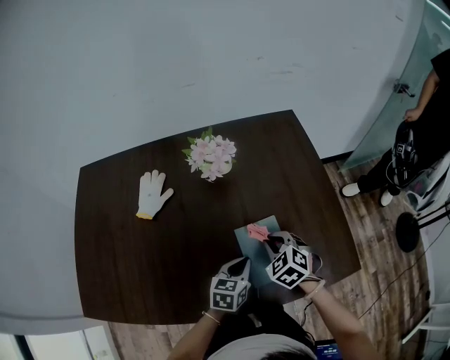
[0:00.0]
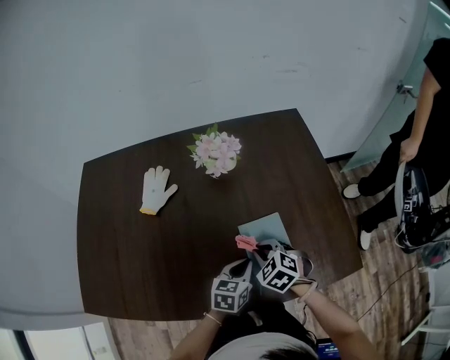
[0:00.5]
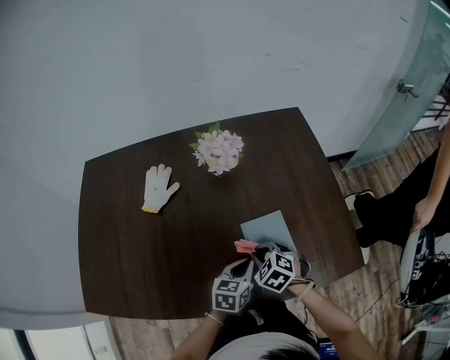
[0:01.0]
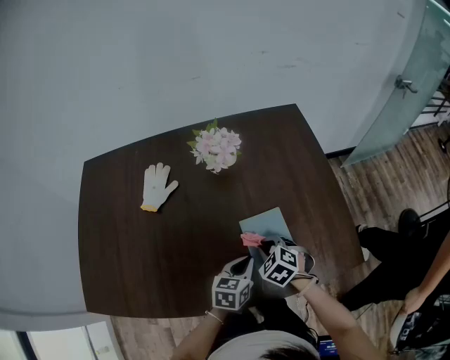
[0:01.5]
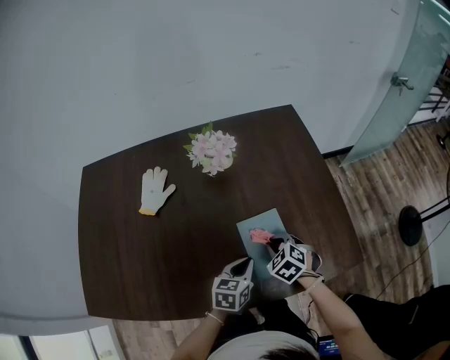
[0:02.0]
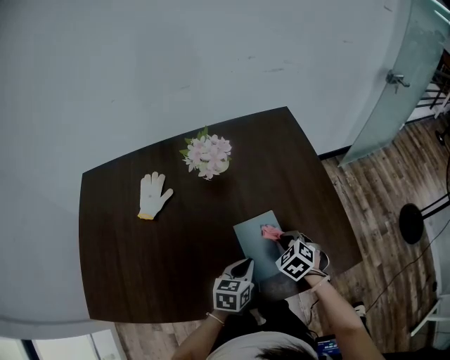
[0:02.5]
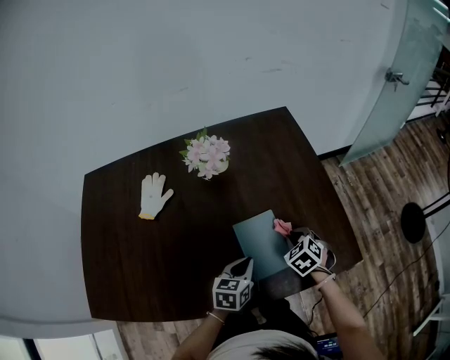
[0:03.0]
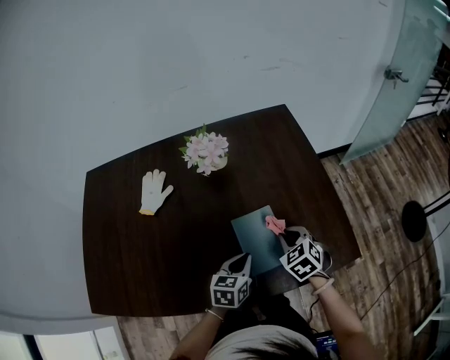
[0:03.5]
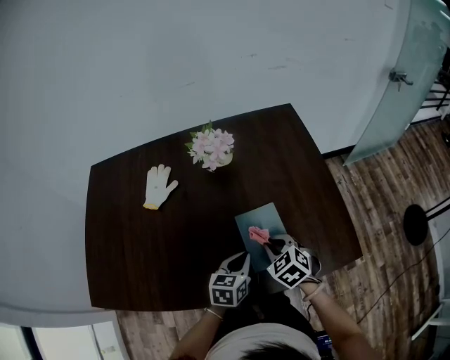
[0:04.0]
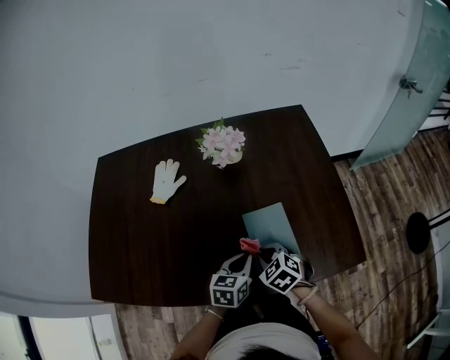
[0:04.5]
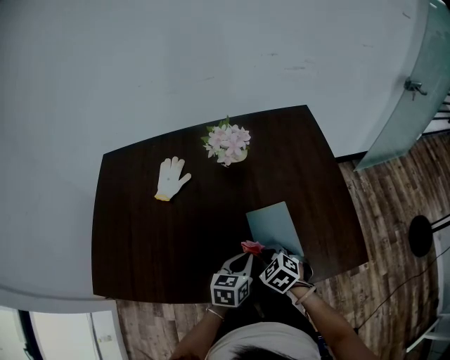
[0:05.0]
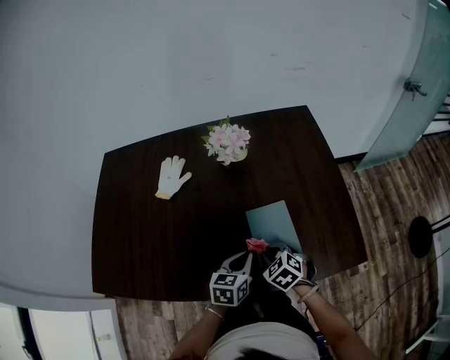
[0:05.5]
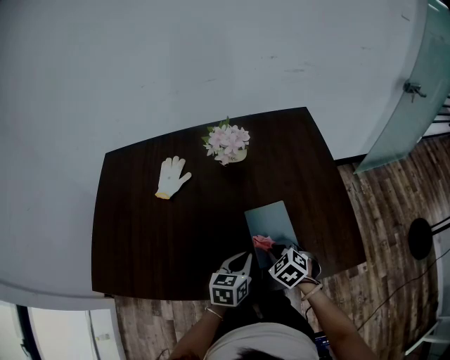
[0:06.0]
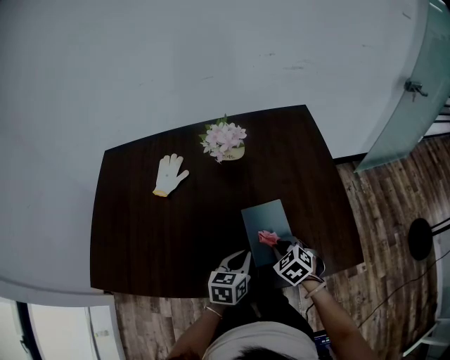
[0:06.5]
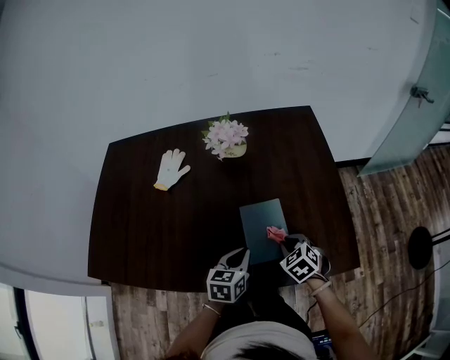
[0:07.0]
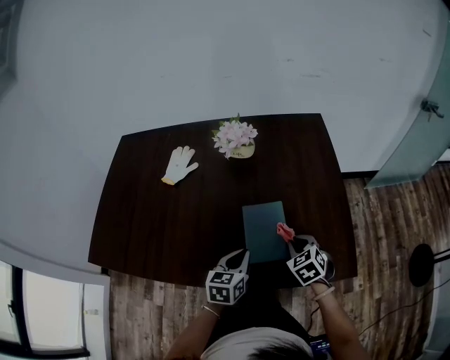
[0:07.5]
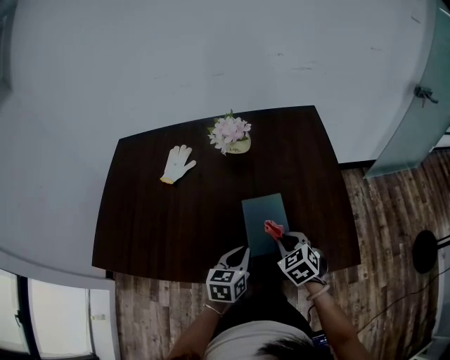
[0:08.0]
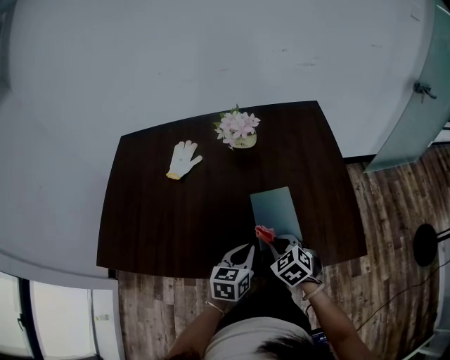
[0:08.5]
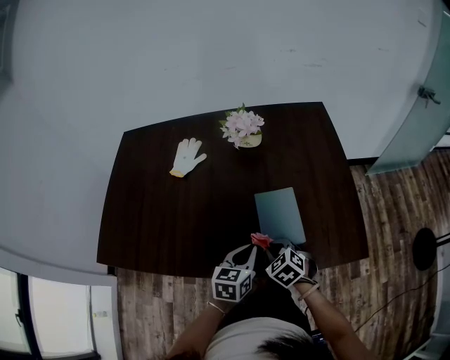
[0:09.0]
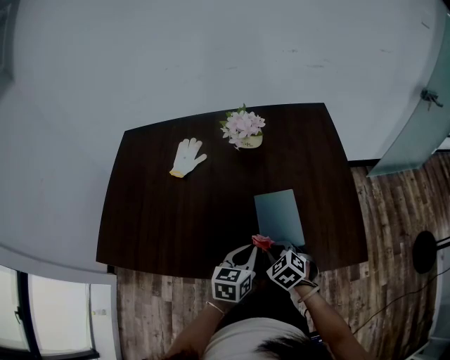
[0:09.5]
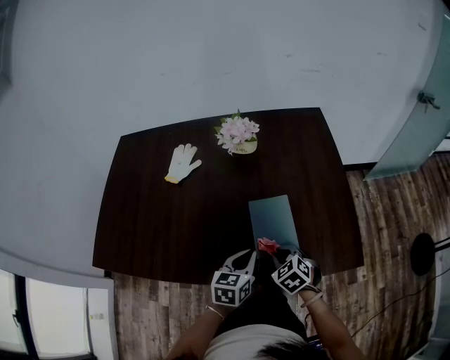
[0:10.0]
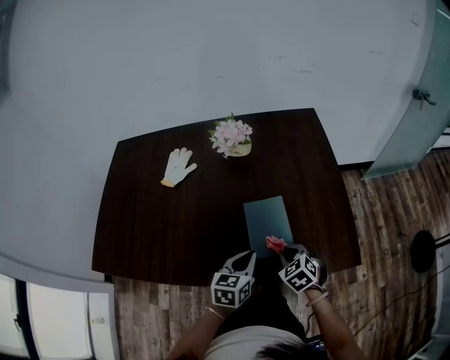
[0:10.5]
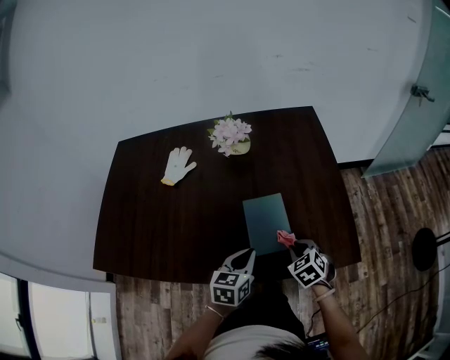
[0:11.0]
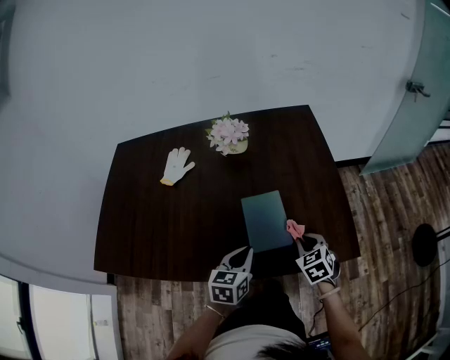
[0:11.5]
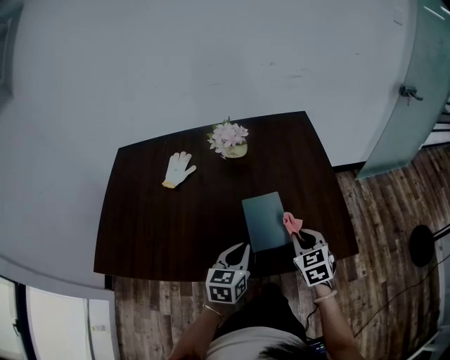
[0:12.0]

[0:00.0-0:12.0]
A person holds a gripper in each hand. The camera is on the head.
0:02.0 to 0:04.0: The right gripper goes to the right and returns, some 10 cm each way.
0:04.0 to 0:06.0: The right gripper changes place by roughly 5 cm.
0:06.0 to 0:08.0: The right gripper heads to the right, covering approximately 5 cm. Meanwhile the left gripper ends up about 5 cm from where it was.
0:08.0 to 0:10.0: The right gripper travels to the left by approximately 5 cm.
0:10.0 to 0:12.0: The right gripper heads to the right and upward, covering roughly 15 cm, and turns by roughly 30 degrees. The left gripper moves approximately 5 cm.

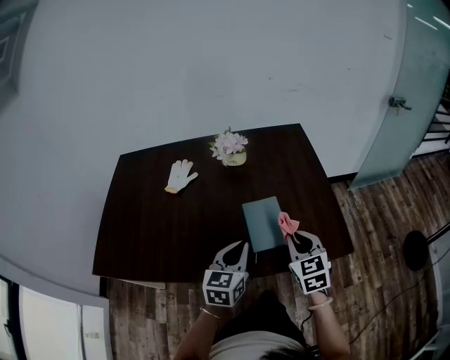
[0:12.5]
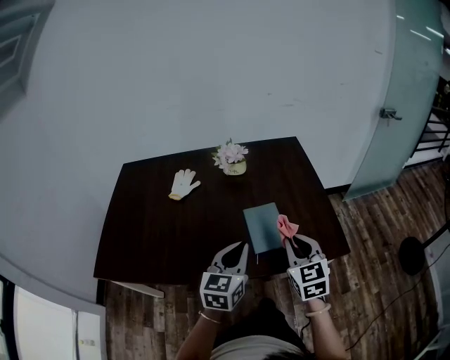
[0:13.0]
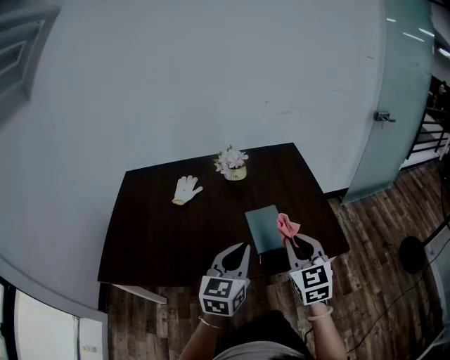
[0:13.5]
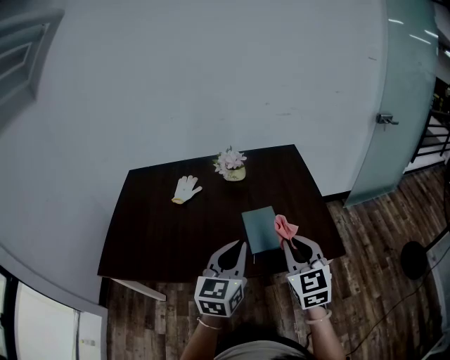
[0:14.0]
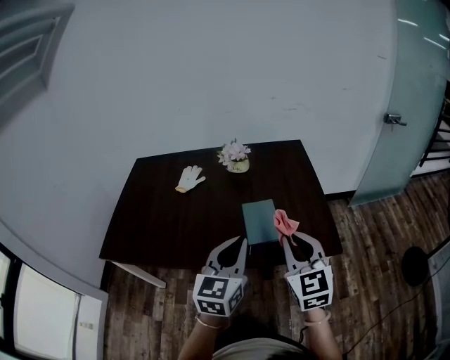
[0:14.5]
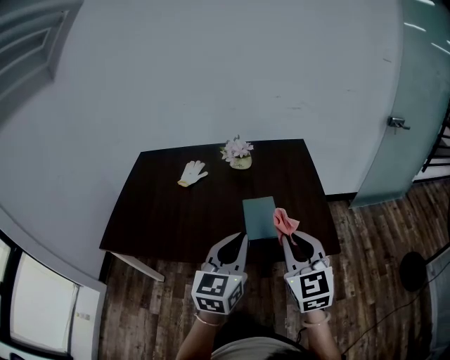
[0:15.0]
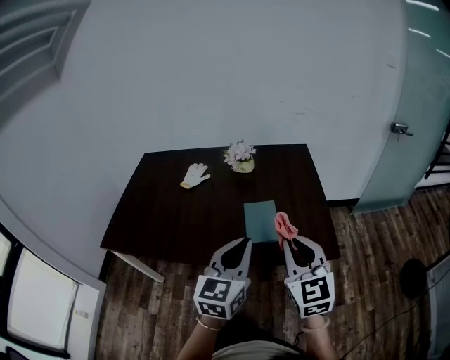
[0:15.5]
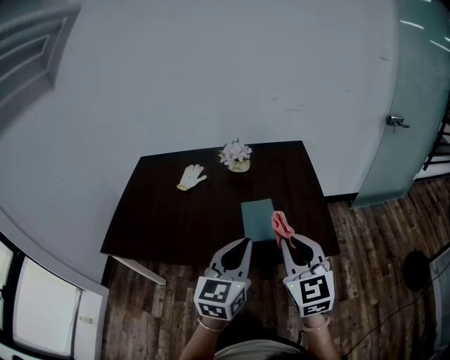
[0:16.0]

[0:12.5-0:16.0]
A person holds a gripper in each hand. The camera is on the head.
0:12.5 to 0:14.5: Both grippers move upward and backward, about 20 cm.
0:14.5 to 0:16.0: The grippers stay close to where they were, moving slightly.

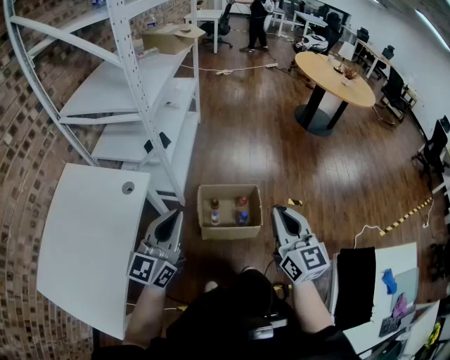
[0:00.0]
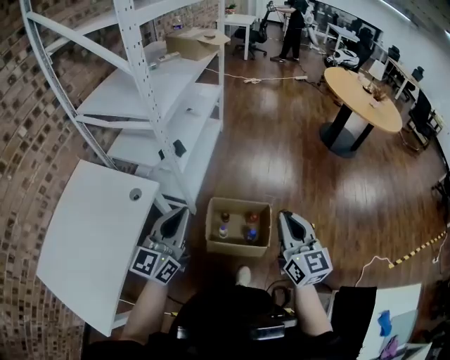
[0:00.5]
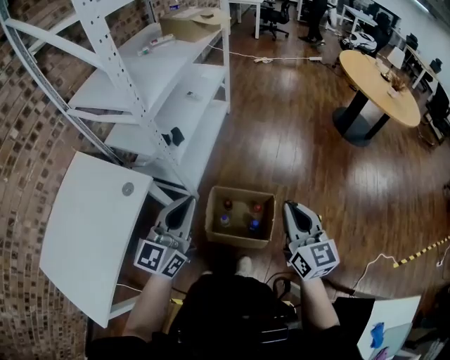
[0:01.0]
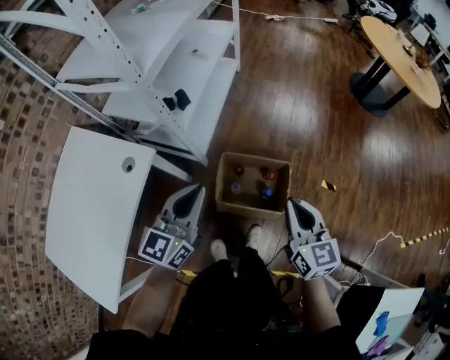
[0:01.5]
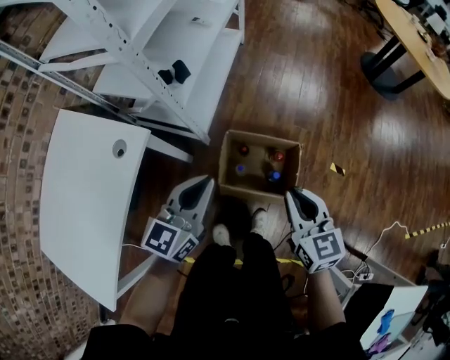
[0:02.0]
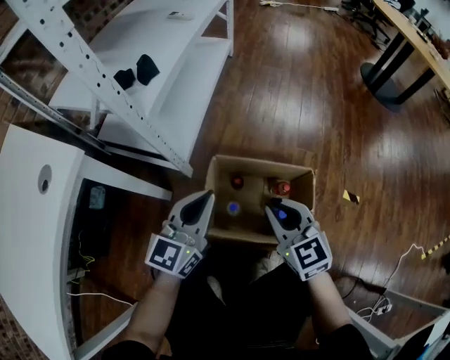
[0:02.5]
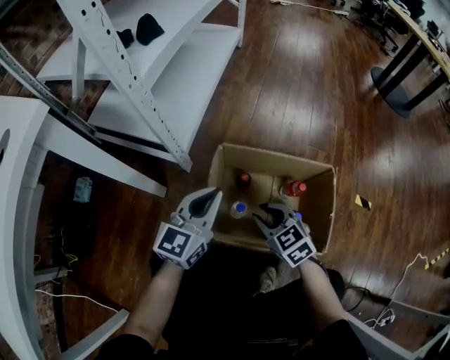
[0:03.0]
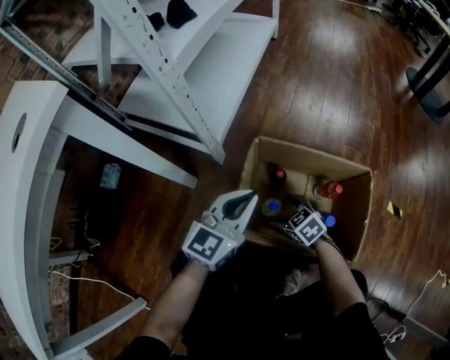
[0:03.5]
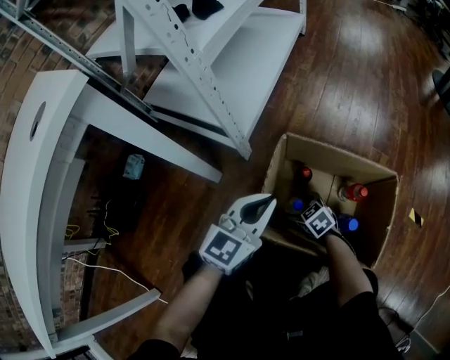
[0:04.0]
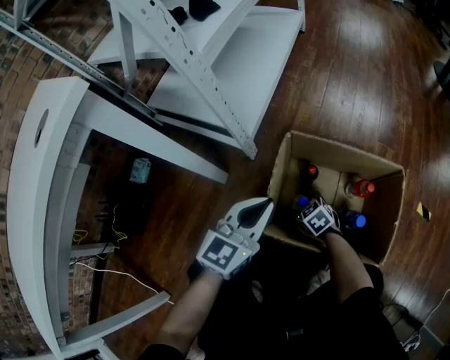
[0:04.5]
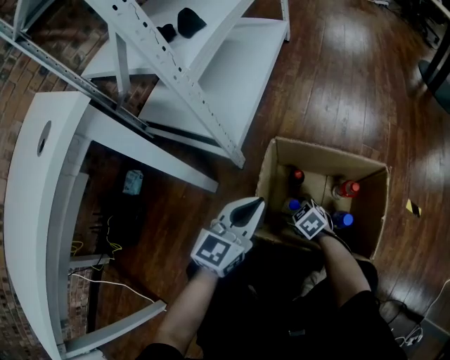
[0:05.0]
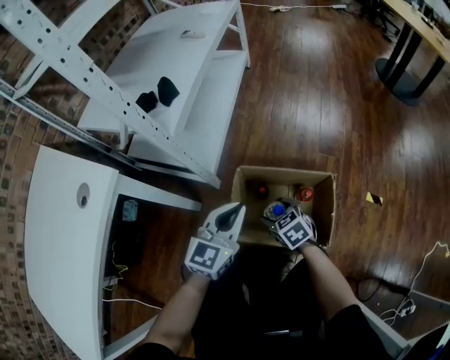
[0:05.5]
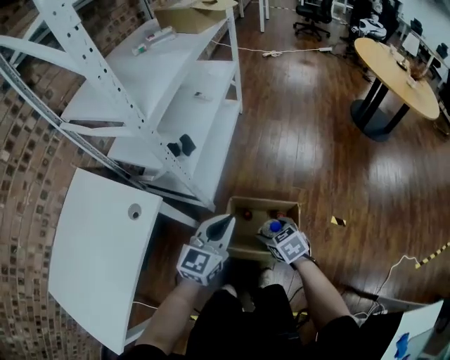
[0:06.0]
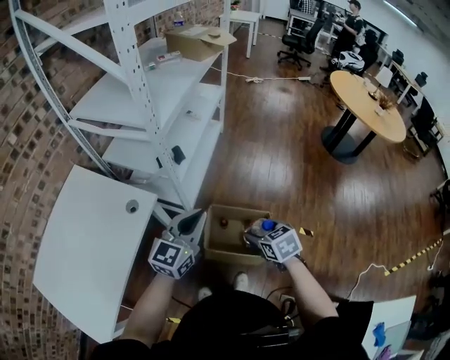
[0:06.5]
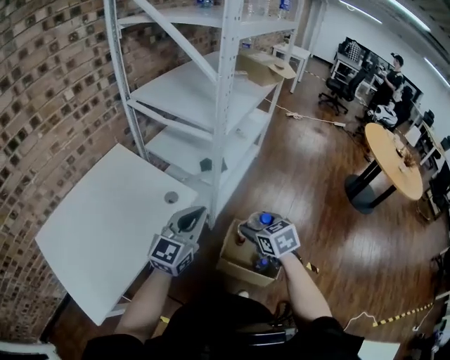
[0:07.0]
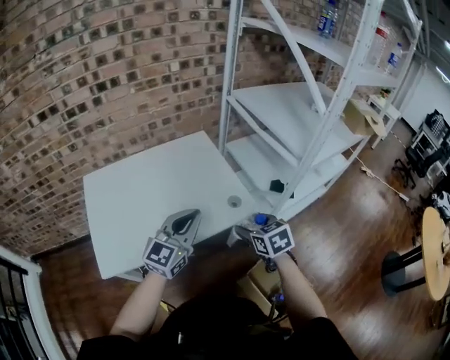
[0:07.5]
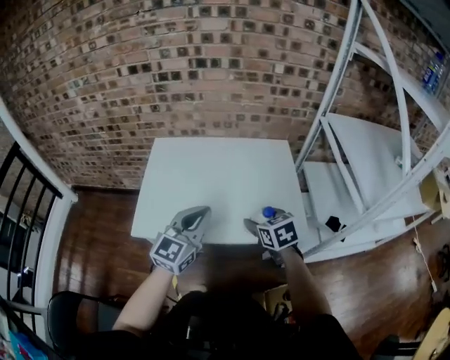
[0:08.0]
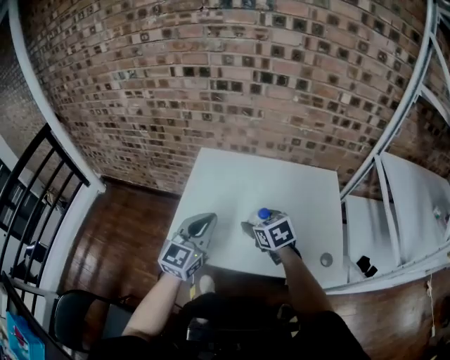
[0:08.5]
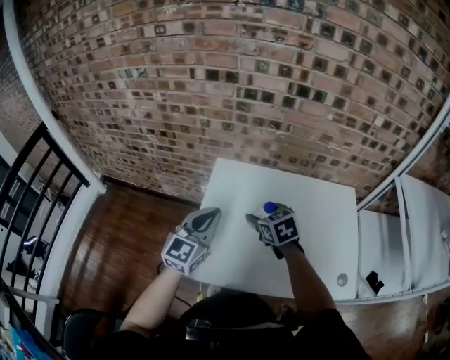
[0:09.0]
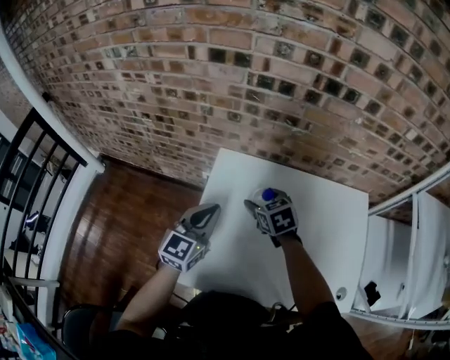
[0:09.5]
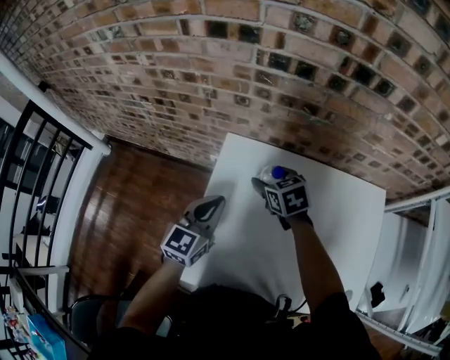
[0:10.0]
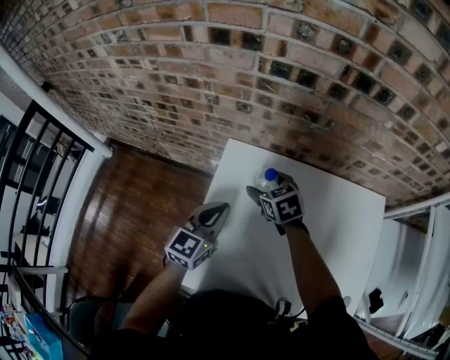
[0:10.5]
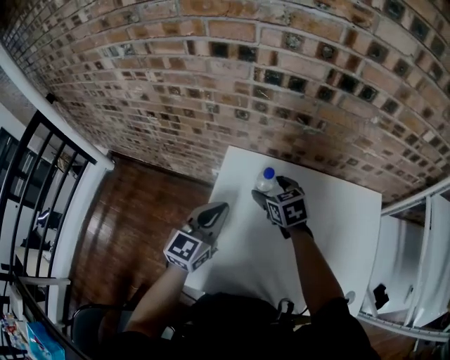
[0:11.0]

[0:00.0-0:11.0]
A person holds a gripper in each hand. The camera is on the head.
0:00.0 to 0:02.0: Both grippers move downward and forward, some 25 cm. The right gripper changes its angle by roughly 20 degrees.
0:02.0 to 0:03.5: Both grippers move downward, about 60 cm. The right gripper changes its angle by about 40 degrees, and opens its fingers.
0:03.5 to 0:05.5: The two grippers go some 20 cm upward.
0:05.5 to 0:07.5: The two grippers go roughly 50 cm upward. The right gripper rotates some 40 degrees; the left gripper changes its angle by roughly 50 degrees.
0:07.5 to 0:09.0: Both grippers are carried some 50 cm. The right gripper changes its angle by some 40 degrees; the left gripper rotates some 40 degrees.
0:09.0 to 0:11.0: The right gripper travels forward by roughly 15 cm. Meanwhile the left gripper heads forward and downward, covering about 15 cm.
